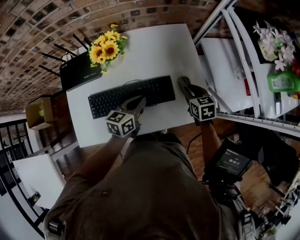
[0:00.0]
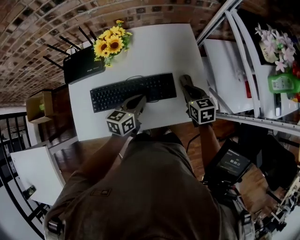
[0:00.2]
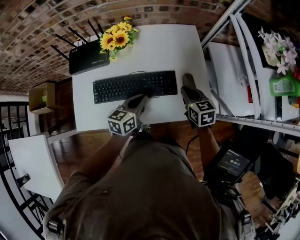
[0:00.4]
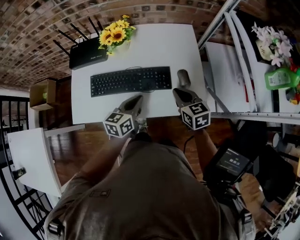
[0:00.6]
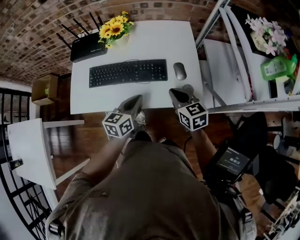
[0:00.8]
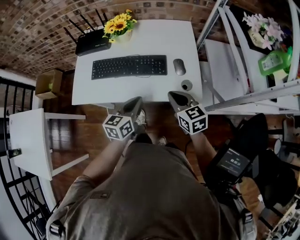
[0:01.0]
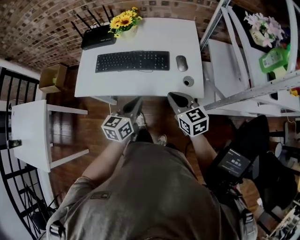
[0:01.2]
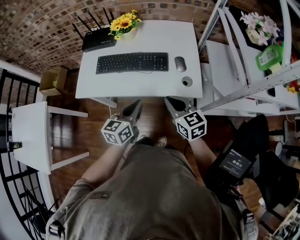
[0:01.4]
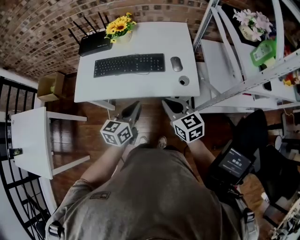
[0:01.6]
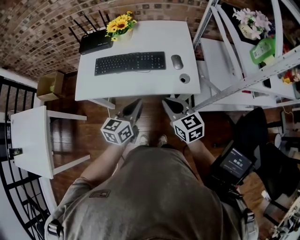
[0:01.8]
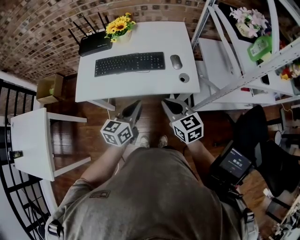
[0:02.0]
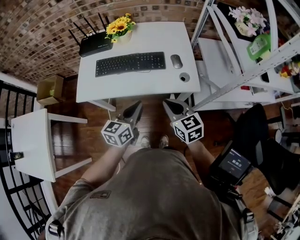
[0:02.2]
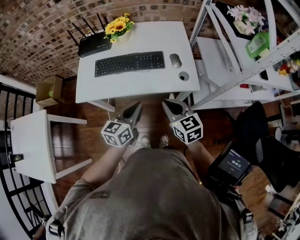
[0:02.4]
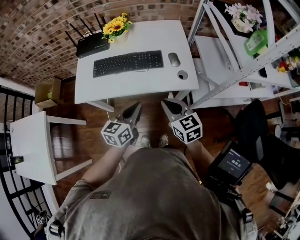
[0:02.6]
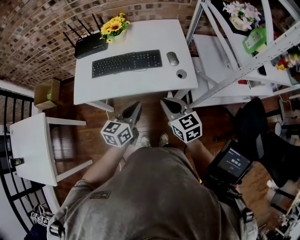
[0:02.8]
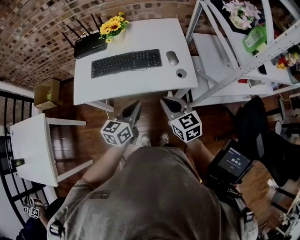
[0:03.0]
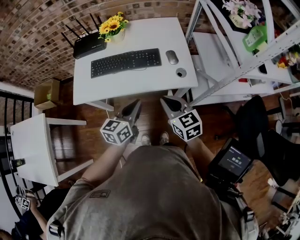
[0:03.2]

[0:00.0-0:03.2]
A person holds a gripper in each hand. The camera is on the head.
0:00.0 to 0:01.6: The right gripper changes place by roughly 30 cm, and swivels approximately 30 degrees. Meanwhile the left gripper shifts by some 25 cm, and rotates approximately 20 degrees.
0:01.6 to 0:03.2: The grippers stay close to where they were, moving slightly.

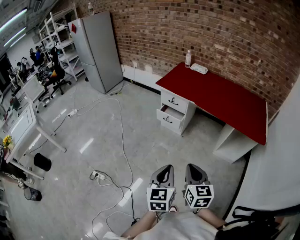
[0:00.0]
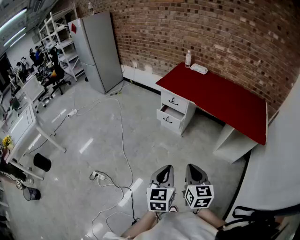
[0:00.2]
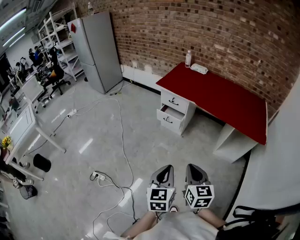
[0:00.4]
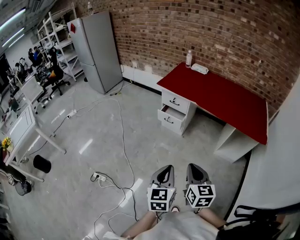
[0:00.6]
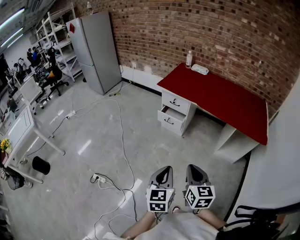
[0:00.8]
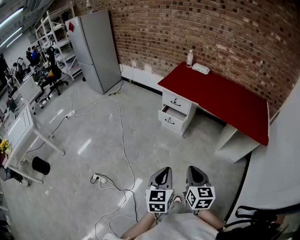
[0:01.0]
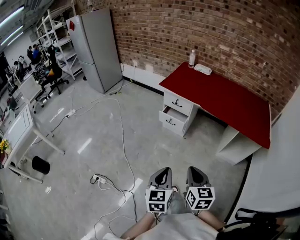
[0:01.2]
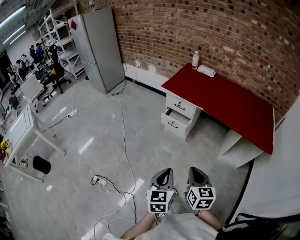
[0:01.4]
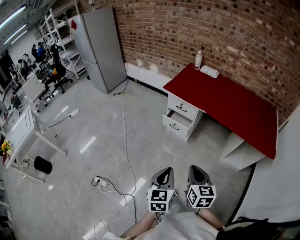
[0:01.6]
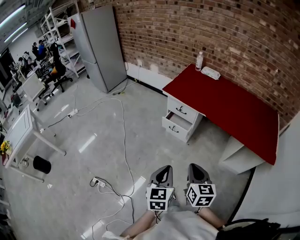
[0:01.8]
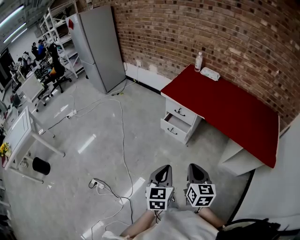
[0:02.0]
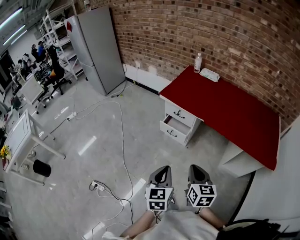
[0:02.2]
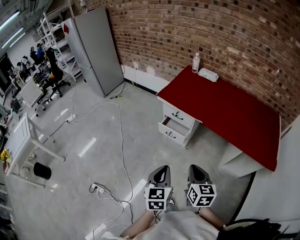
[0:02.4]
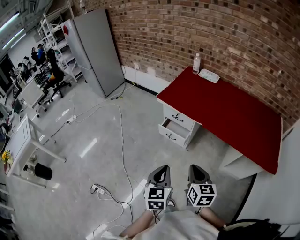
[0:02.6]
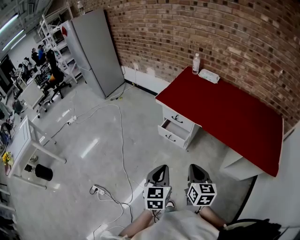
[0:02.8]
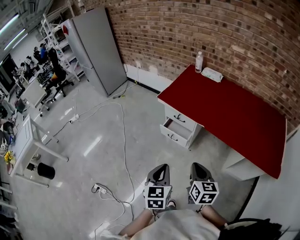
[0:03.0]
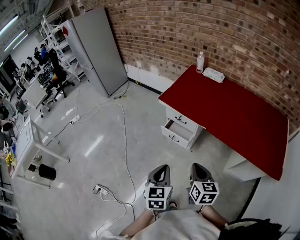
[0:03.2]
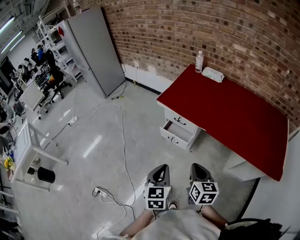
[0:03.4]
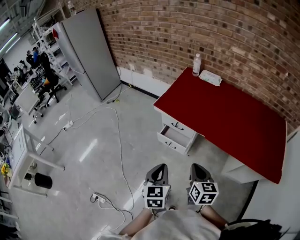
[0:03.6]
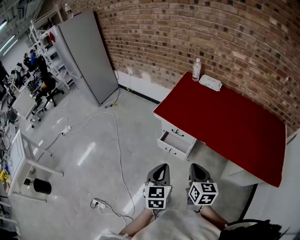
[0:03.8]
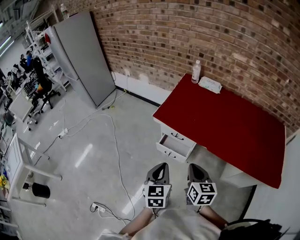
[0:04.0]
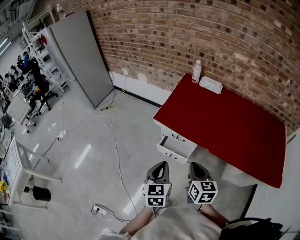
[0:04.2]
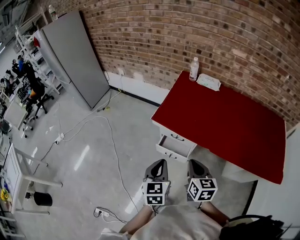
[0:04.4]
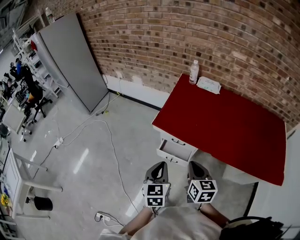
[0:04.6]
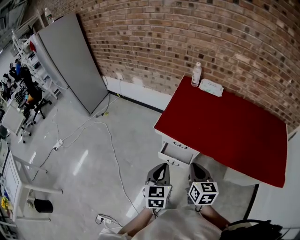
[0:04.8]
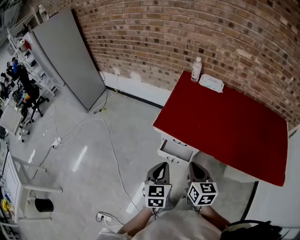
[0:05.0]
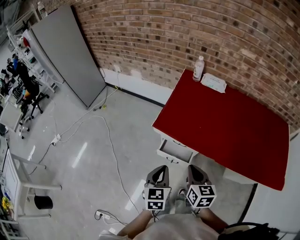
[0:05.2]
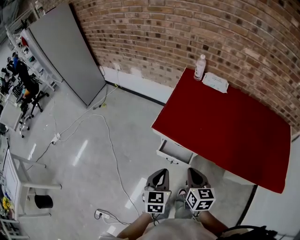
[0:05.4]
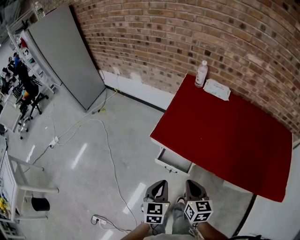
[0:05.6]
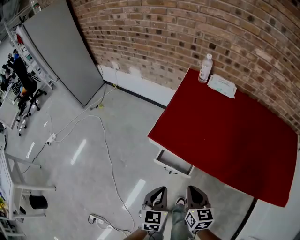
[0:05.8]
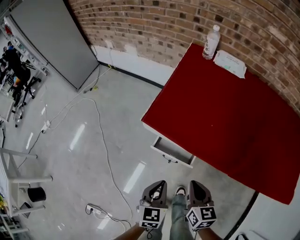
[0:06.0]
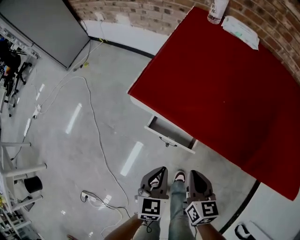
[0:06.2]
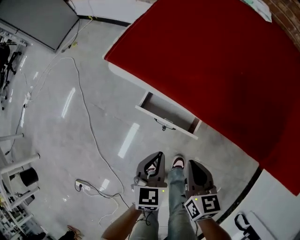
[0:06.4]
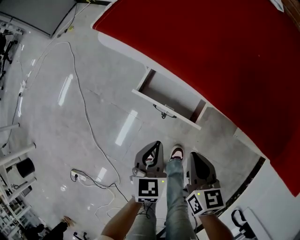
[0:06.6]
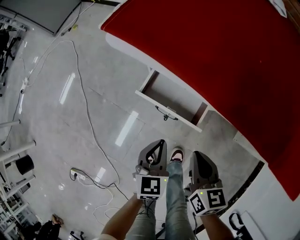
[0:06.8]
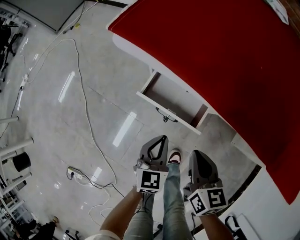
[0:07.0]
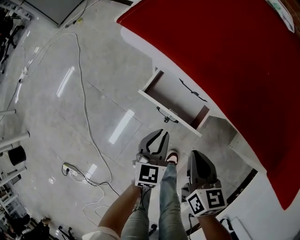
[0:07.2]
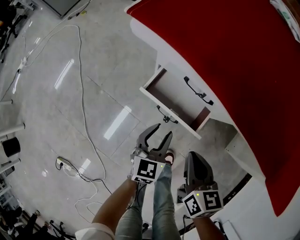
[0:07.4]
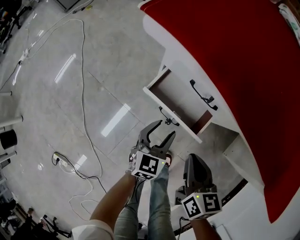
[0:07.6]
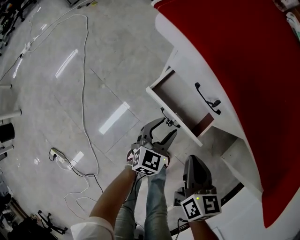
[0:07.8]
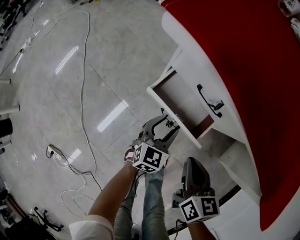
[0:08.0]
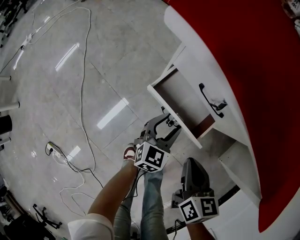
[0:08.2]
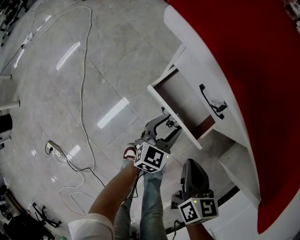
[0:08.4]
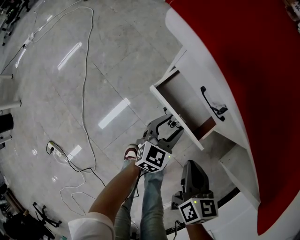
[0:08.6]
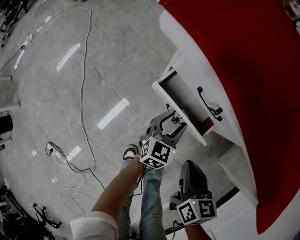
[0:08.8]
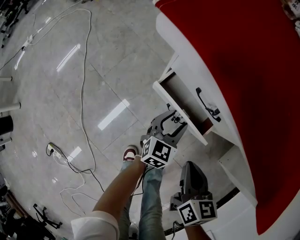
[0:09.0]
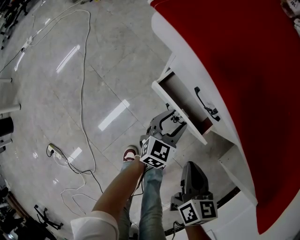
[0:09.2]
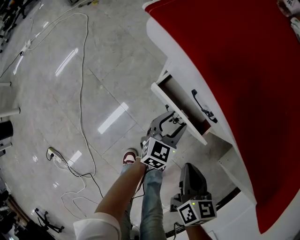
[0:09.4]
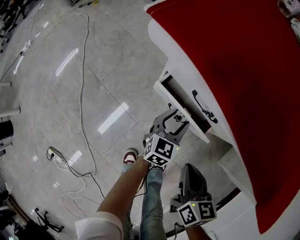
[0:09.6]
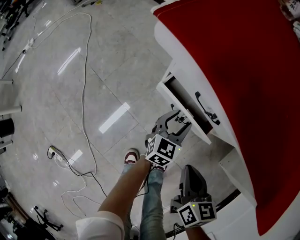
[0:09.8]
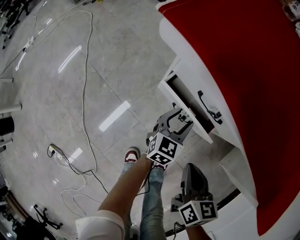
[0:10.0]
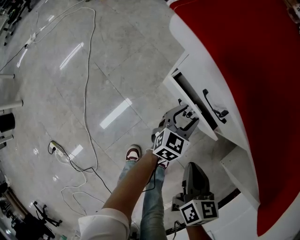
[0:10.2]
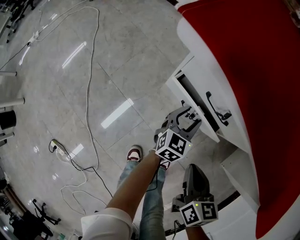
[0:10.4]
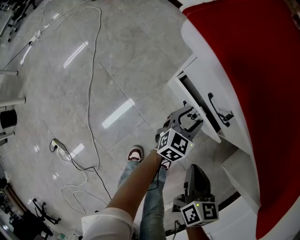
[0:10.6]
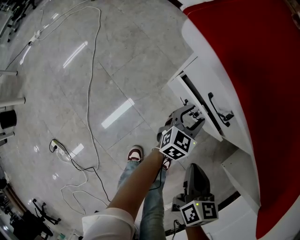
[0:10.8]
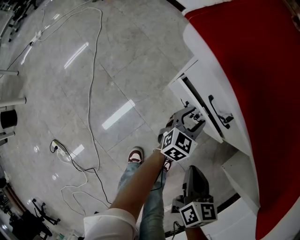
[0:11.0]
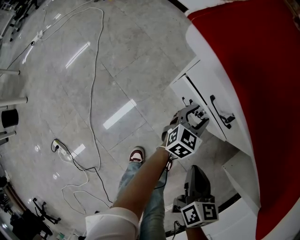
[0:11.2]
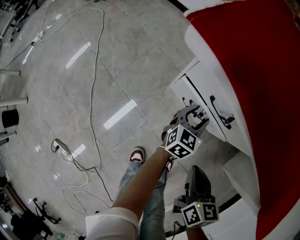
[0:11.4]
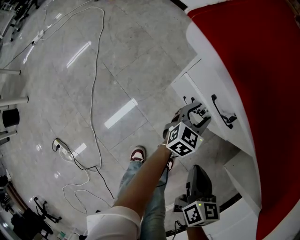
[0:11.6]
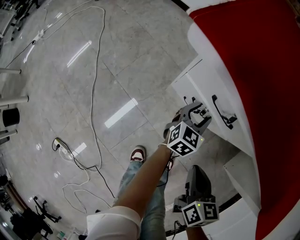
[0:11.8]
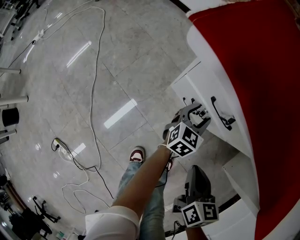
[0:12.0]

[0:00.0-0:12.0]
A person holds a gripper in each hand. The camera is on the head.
0:00.0 to 0:01.6: The left gripper moves forward and to the left, some 15 cm, while the right gripper moves forward, approximately 15 cm.
0:01.6 to 0:03.0: Both grippers travel together forward, about 20 cm.
0:03.0 to 0:04.4: Both grippers move forward, approximately 25 cm.
0:04.4 to 0:06.0: The left gripper goes about 20 cm downward. Meanwhile the right gripper travels downward and forward by approximately 20 cm.
0:06.0 to 0:07.6: The two grippers go about 25 cm downward. The left gripper opens up.
0:07.6 to 0:09.0: The left gripper goes roughly 5 cm forward.
0:09.0 to 0:10.4: There are only small adjustments of the grippers.
0:10.4 to 0:12.0: The grippers move only a little.

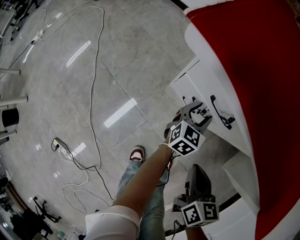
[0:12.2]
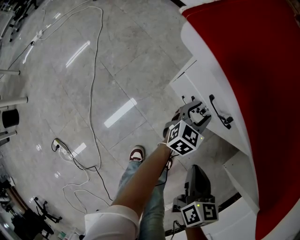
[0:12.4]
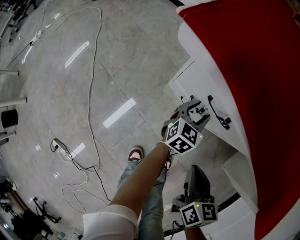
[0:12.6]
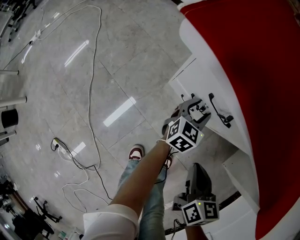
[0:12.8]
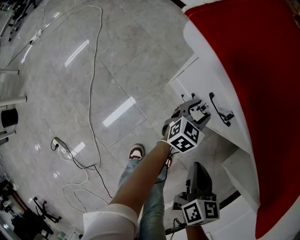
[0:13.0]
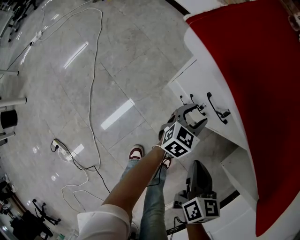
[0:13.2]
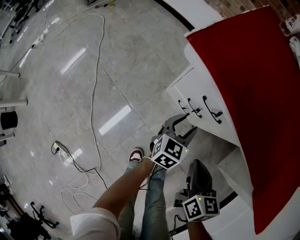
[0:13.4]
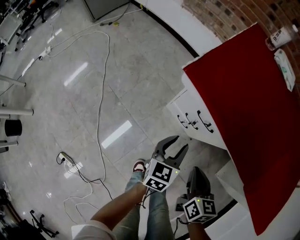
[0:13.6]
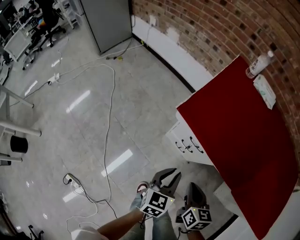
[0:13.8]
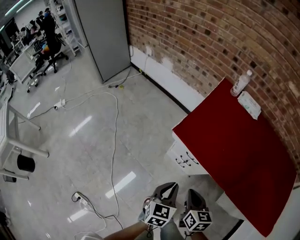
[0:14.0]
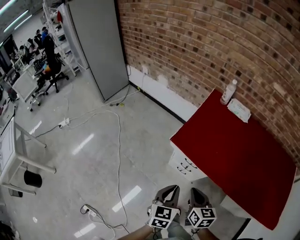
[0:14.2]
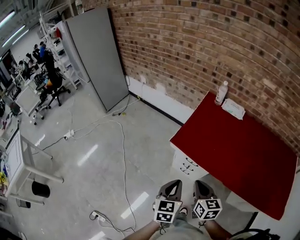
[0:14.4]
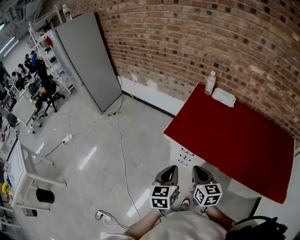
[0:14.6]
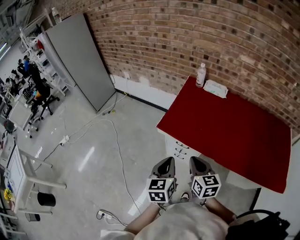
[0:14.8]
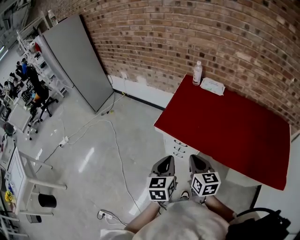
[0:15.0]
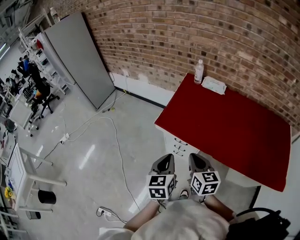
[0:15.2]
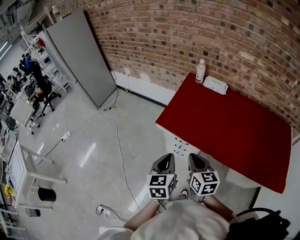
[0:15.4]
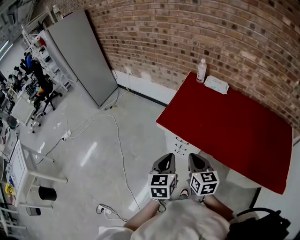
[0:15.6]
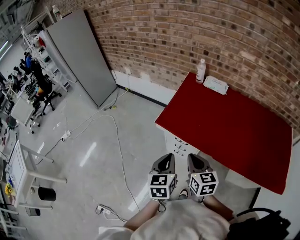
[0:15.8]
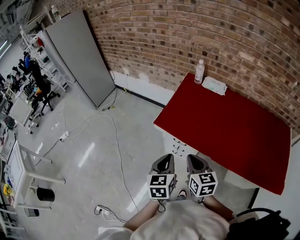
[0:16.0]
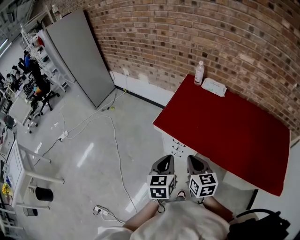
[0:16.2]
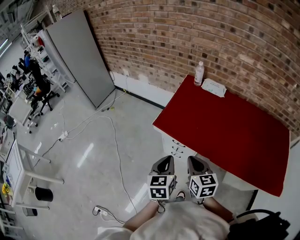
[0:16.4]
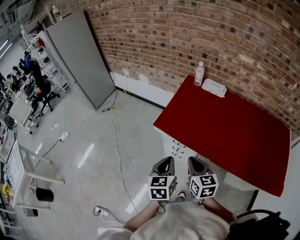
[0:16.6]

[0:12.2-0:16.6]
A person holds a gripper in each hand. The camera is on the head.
0:12.2 to 0:13.6: The left gripper goes some 25 cm upward, backward and to the left. Meanwhile the right gripper heads upward, covering some 10 cm.
0:13.6 to 0:15.2: Both grippers travel together upward, about 35 cm. The right gripper rotates approximately 20 degrees; the left gripper closes.
0:15.2 to 0:16.6: The grippers move only a little.

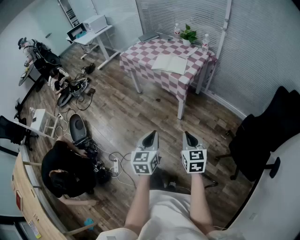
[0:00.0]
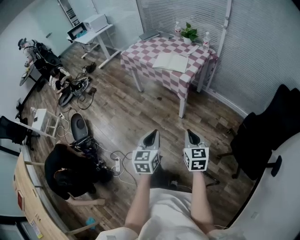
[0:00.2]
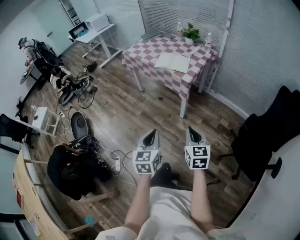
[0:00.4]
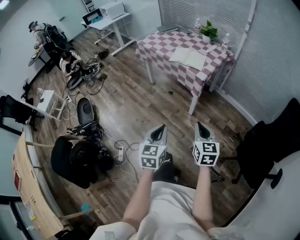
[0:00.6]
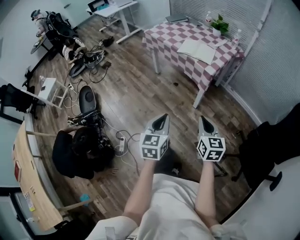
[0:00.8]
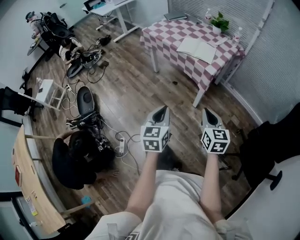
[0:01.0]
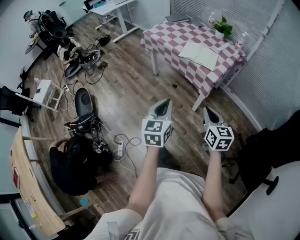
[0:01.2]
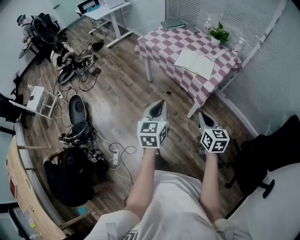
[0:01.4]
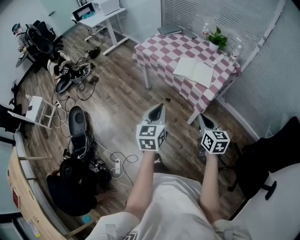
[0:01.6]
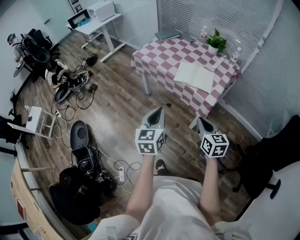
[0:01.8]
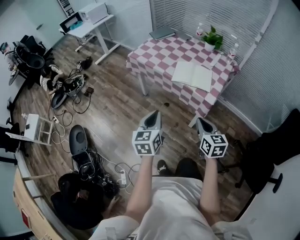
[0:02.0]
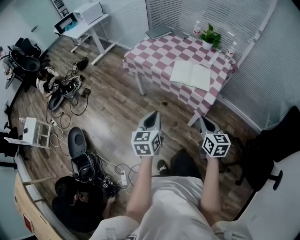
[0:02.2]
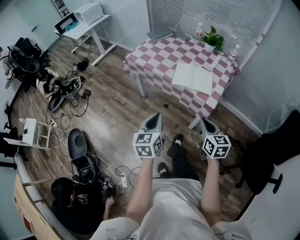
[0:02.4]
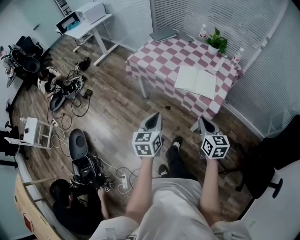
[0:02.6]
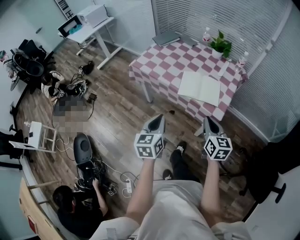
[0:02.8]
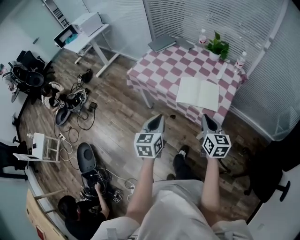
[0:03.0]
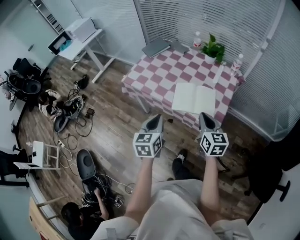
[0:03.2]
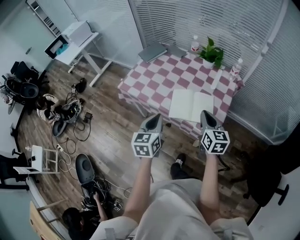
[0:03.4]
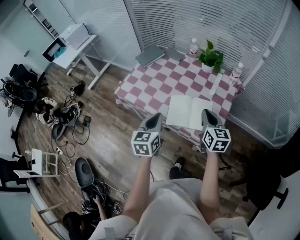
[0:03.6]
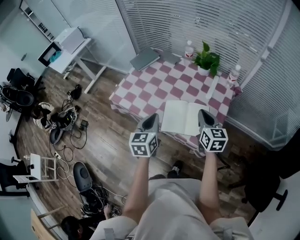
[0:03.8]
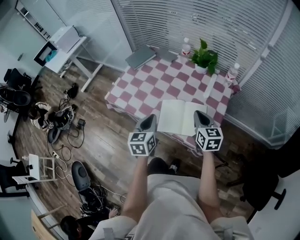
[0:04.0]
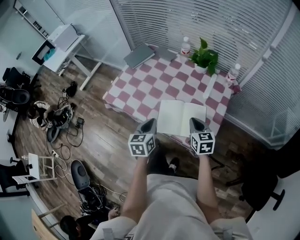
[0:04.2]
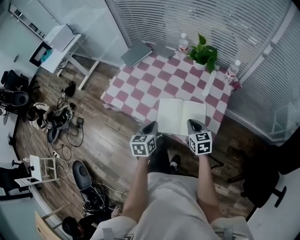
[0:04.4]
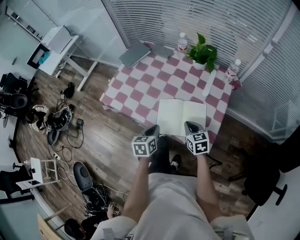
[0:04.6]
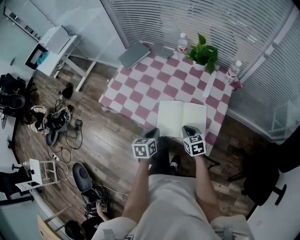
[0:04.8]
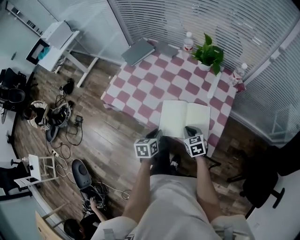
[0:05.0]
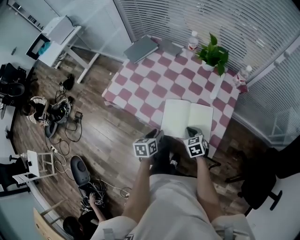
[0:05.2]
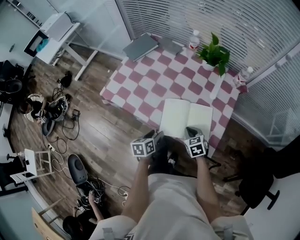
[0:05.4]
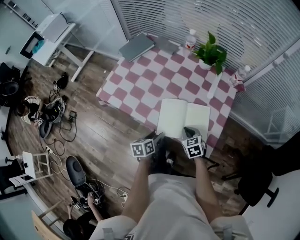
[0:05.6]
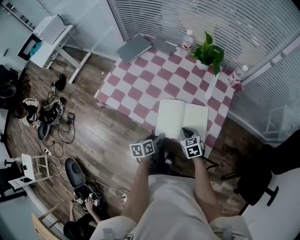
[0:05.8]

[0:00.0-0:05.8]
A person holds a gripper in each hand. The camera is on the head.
0:00.0 to 0:01.4: The right gripper is displaced forward by approximately 25 cm; the left gripper heads forward and to the left, covering approximately 25 cm.
0:01.4 to 0:02.8: Both grippers travel together forward, about 25 cm.
0:02.8 to 0:04.4: The left gripper goes roughly 30 cm forward, while the right gripper shifts about 30 cm forward and downward.
0:04.4 to 0:05.8: The grippers both shift downward by about 10 cm. The left gripper swivels roughly 30 degrees, and opens its fingers.
